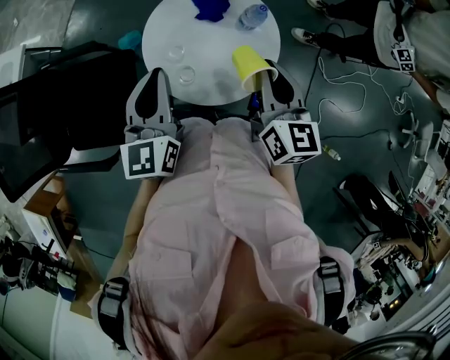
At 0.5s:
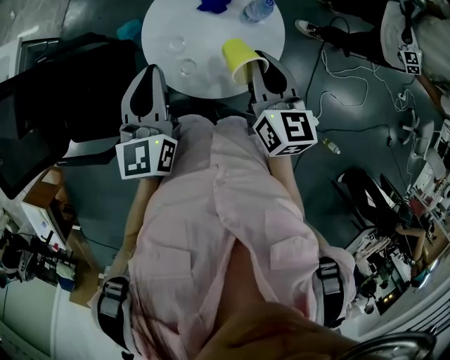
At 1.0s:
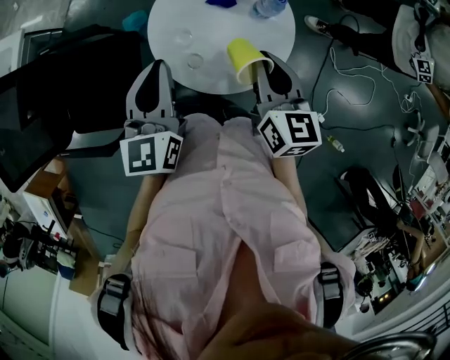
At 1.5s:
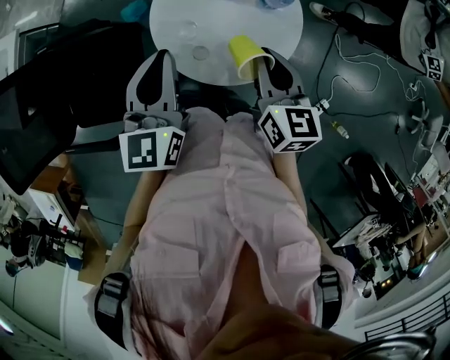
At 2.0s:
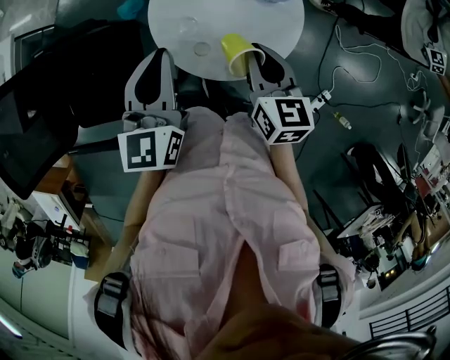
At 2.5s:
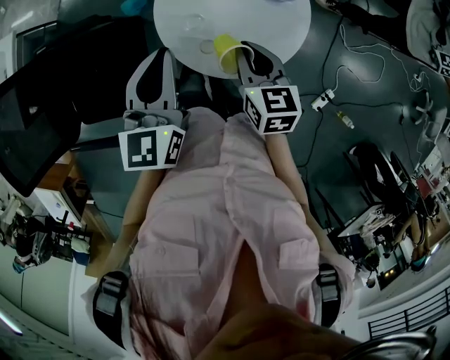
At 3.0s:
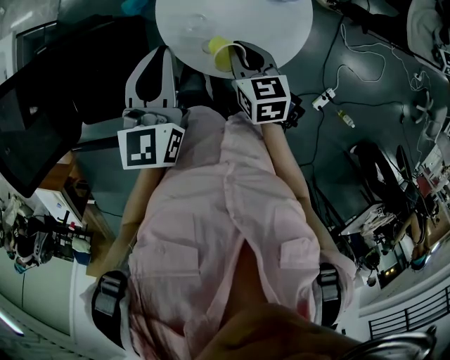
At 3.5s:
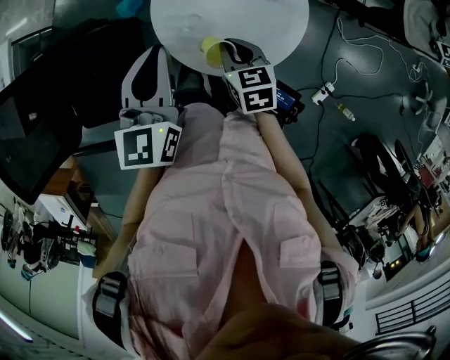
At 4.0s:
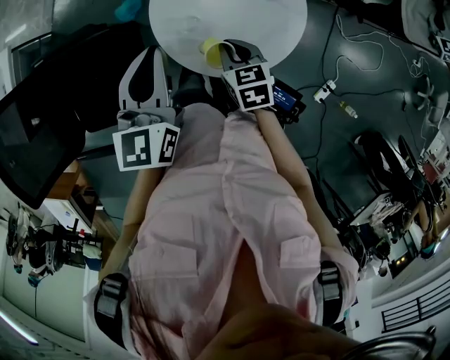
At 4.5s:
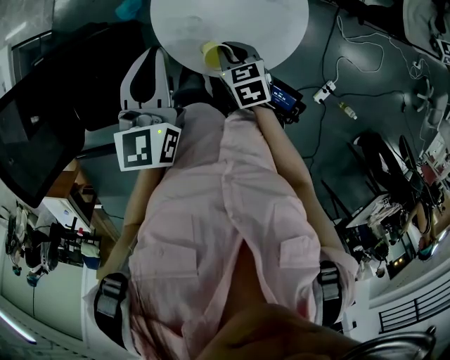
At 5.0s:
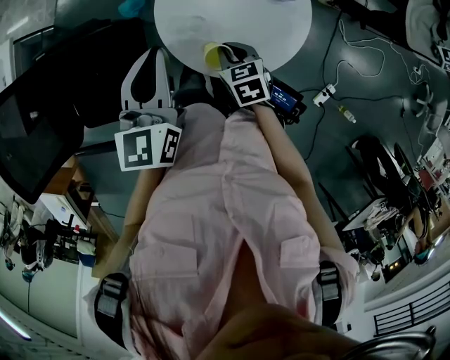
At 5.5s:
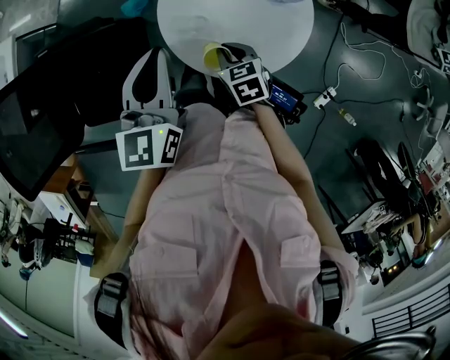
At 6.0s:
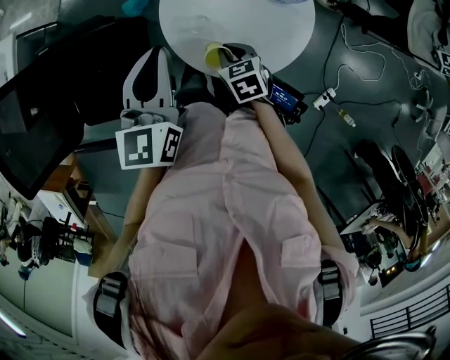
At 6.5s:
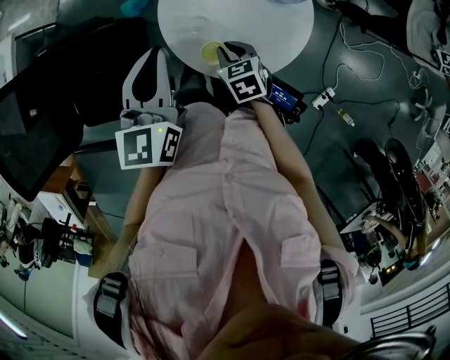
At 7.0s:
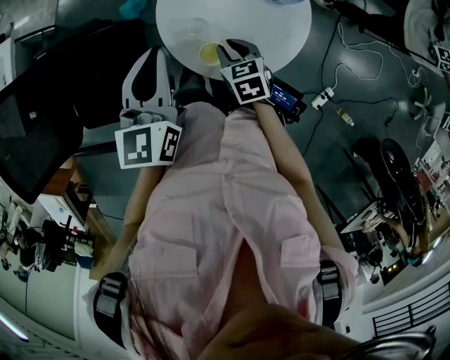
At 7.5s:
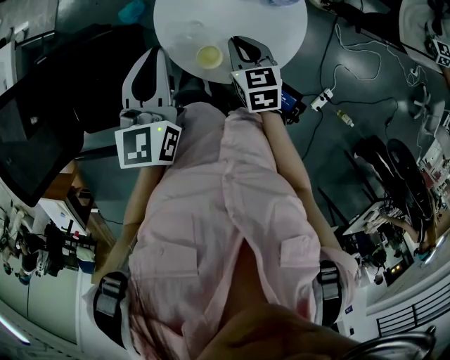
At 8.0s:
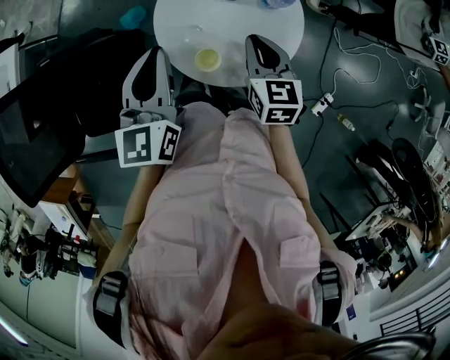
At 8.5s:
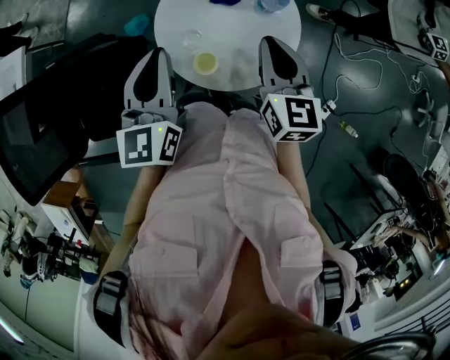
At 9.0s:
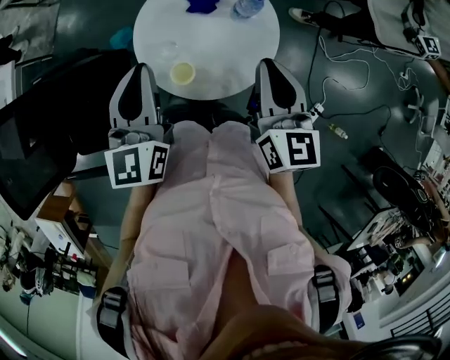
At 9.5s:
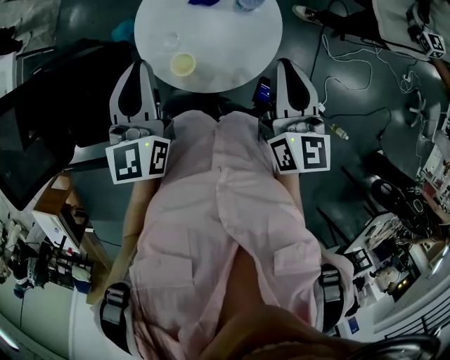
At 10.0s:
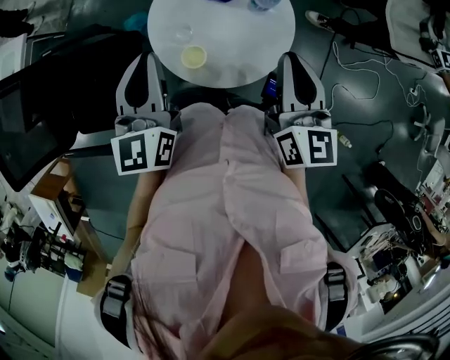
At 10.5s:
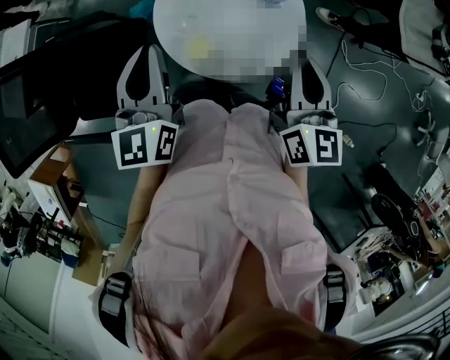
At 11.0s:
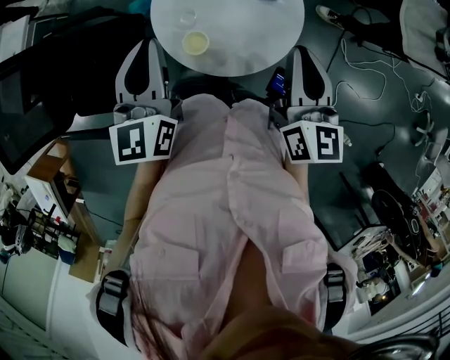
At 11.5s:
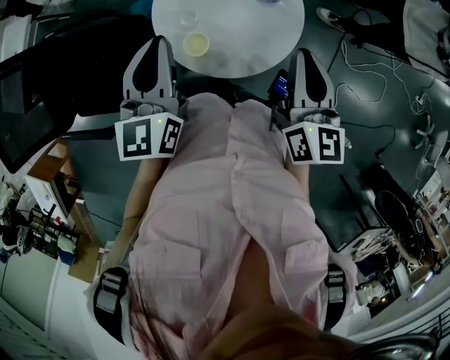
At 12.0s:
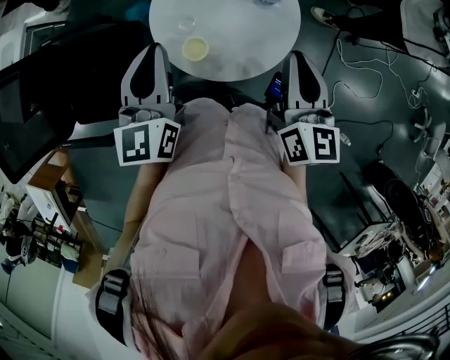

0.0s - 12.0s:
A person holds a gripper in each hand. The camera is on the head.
0.0s - 2.0s: The right gripper is displaced downward and to the left by approximately 10 cm.
2.0s - 4.0s: The right gripper travels downward and to the left by approximately 15 cm, and swivels about 20 degrees.
4.0s - 6.0s: The right gripper ends up roughly 5 cm from where it was.
6.0s - 8.0s: The right gripper travels upward and to the right by approximately 15 cm, and turns by some 30 degrees.
8.0s - 10.0s: The left gripper shifts by roughly 5 cm. Meanwhile the right gripper goes roughly 15 cm upward, to the right and backward, and swivels some 20 degrees.
10.0s - 12.0s: The grippers move only a little.

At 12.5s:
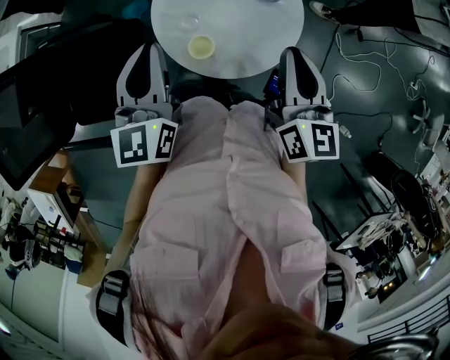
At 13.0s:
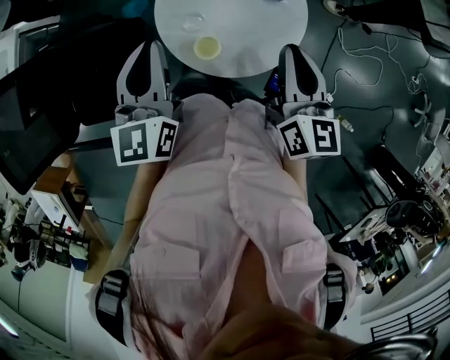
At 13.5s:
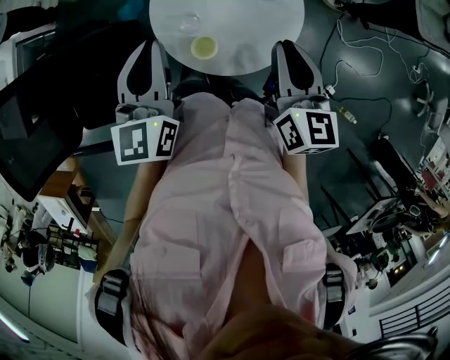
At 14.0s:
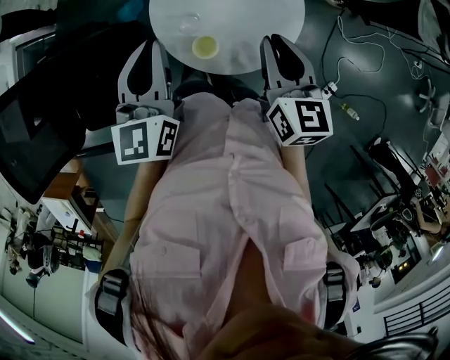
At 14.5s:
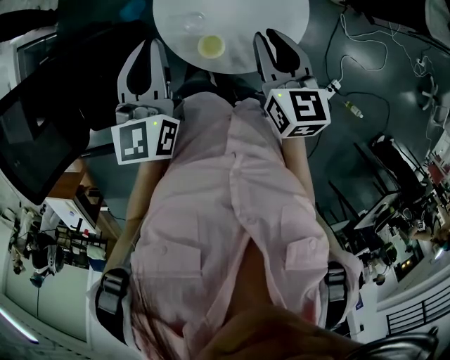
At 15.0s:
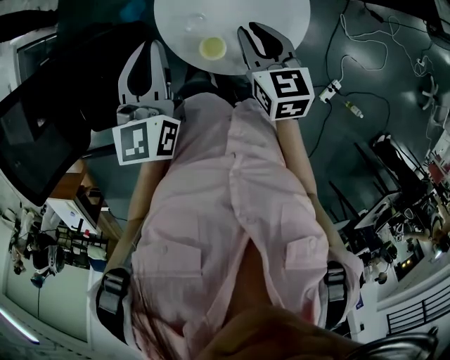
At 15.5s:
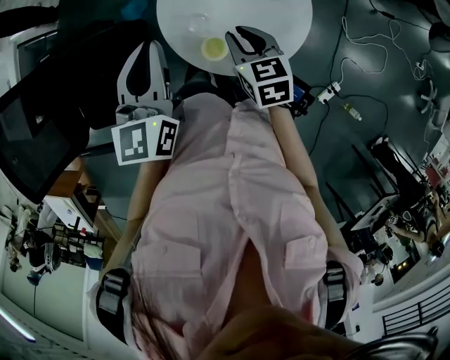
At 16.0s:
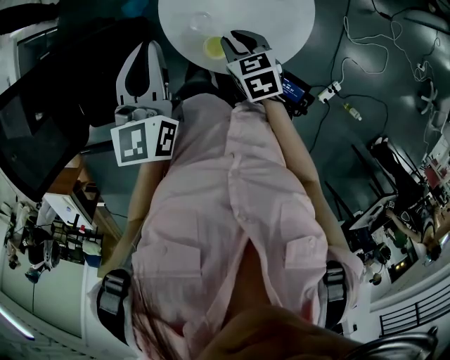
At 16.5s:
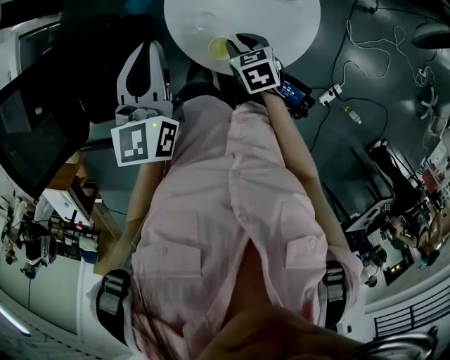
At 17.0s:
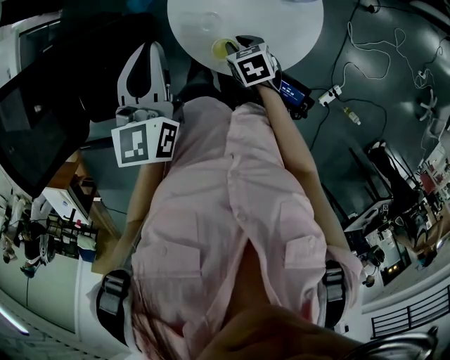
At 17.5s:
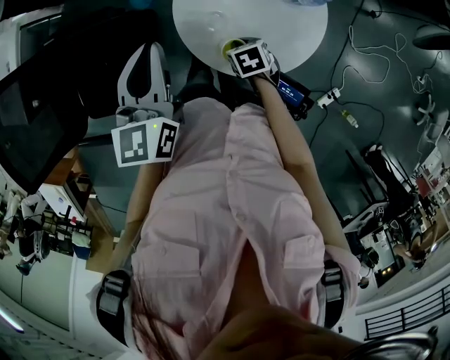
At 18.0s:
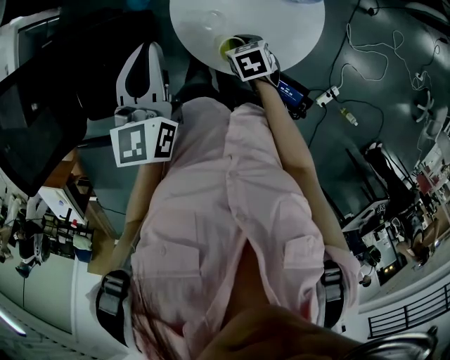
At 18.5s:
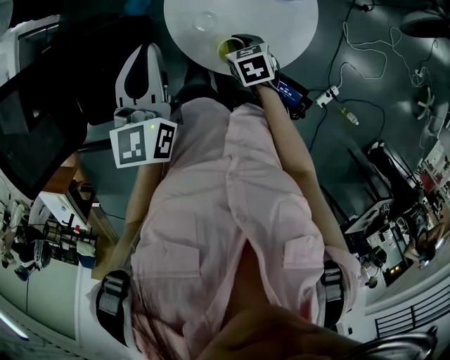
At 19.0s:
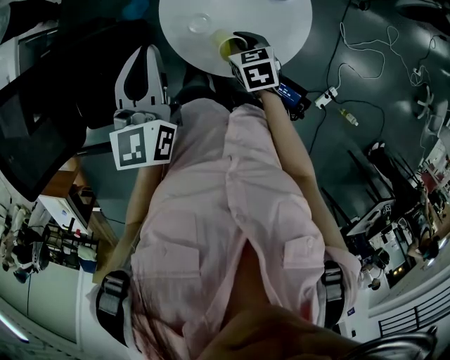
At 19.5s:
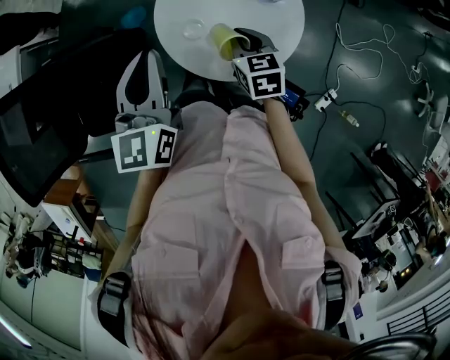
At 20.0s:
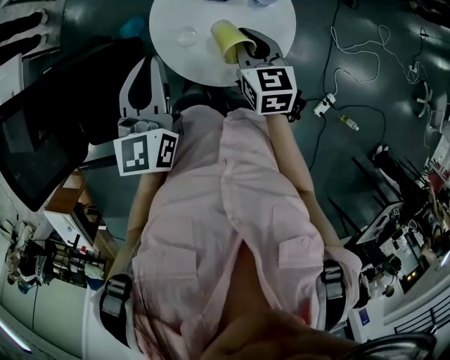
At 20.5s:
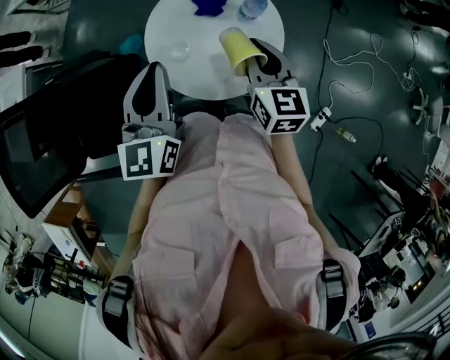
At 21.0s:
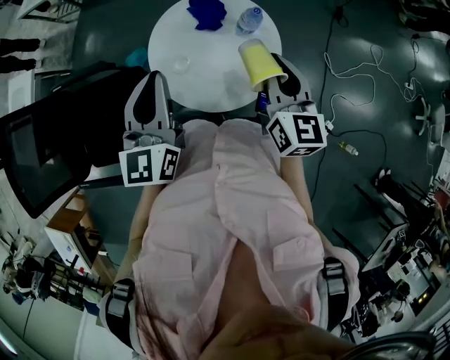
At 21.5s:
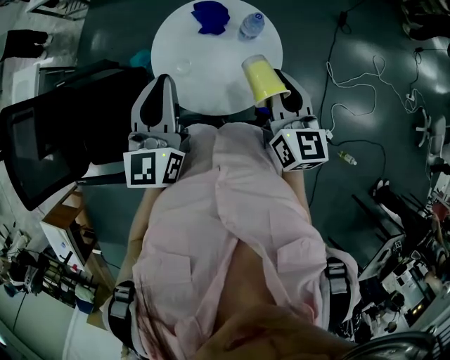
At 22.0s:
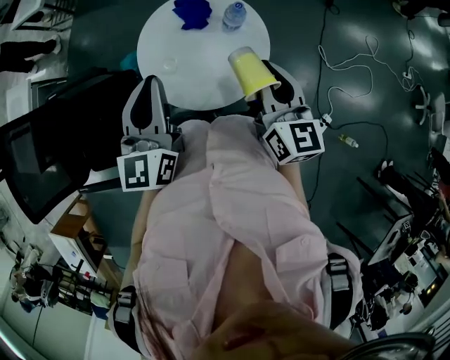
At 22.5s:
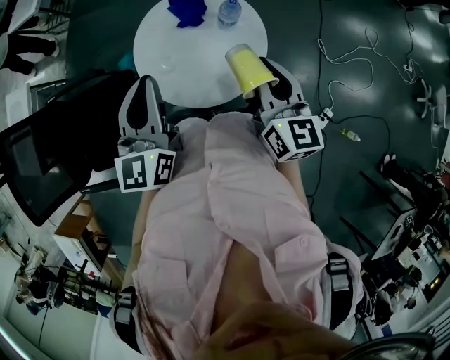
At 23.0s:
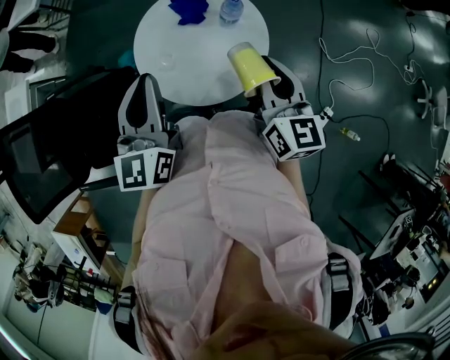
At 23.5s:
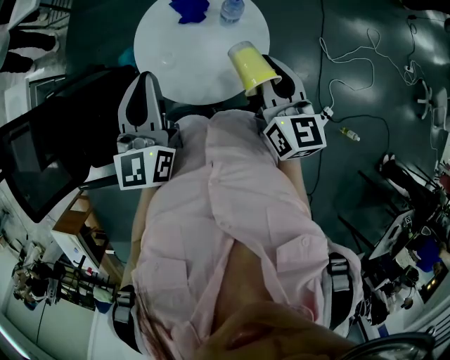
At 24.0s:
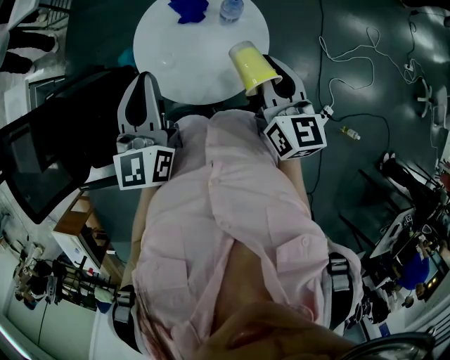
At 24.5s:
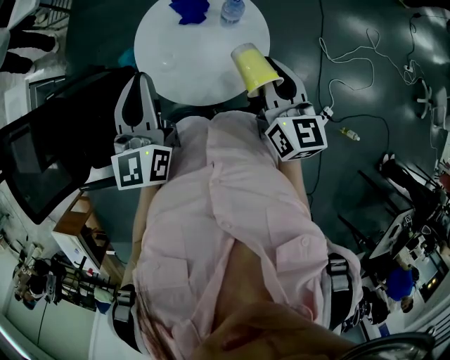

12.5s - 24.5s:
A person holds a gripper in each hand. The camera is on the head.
12.5s - 14.5s: The right gripper is displaced to the left and downward by some 10 cm.
14.5s - 16.5s: The right gripper goes about 20 cm downward and to the left, and rotates some 40 degrees.
18.5s - 20.5s: The right gripper goes roughly 25 cm upward and to the right, and points its fingers about 40 degrees further upward. The left gripper moves to the right, about 10 cm.
20.5s - 22.5s: The right gripper is displaced to the right and upward by some 10 cm.
22.5s - 24.5s: Neither gripper changes place.

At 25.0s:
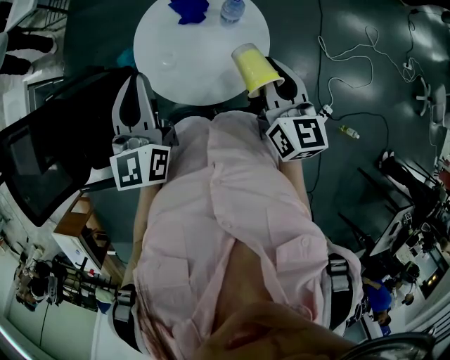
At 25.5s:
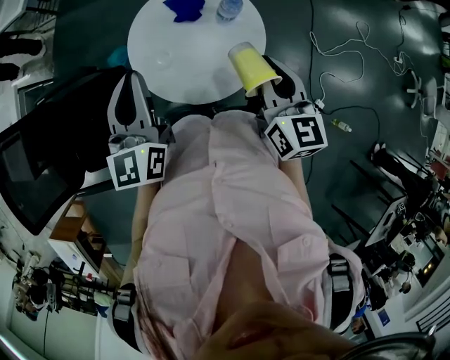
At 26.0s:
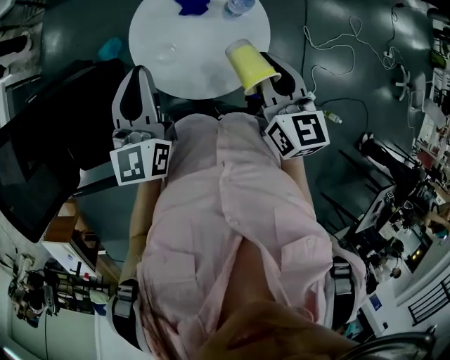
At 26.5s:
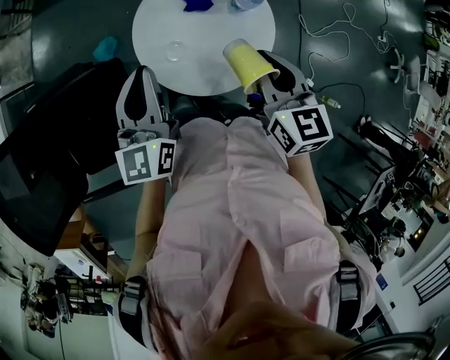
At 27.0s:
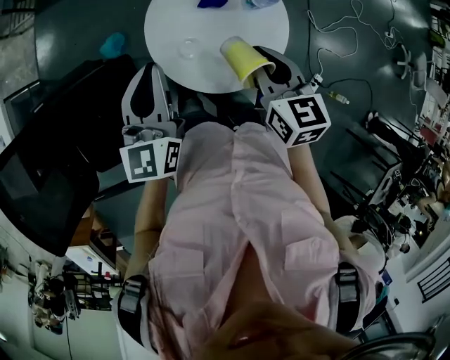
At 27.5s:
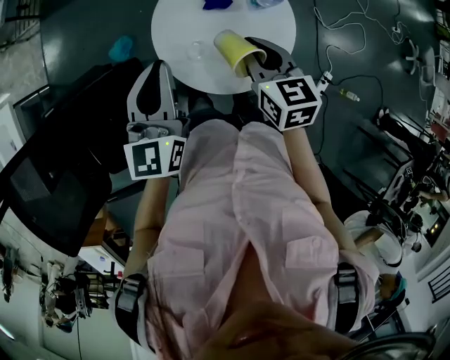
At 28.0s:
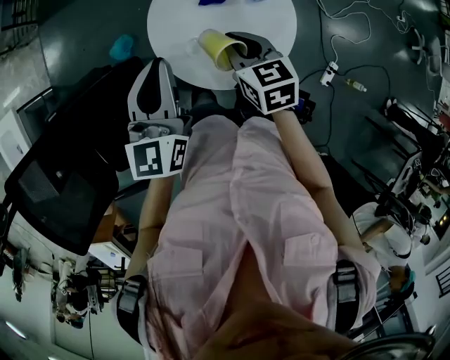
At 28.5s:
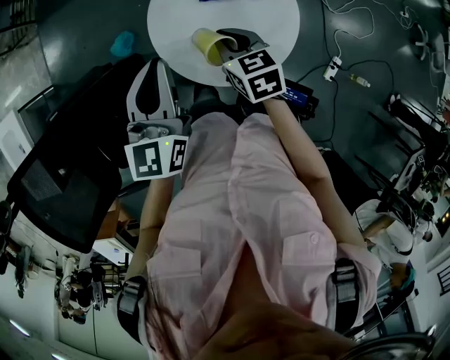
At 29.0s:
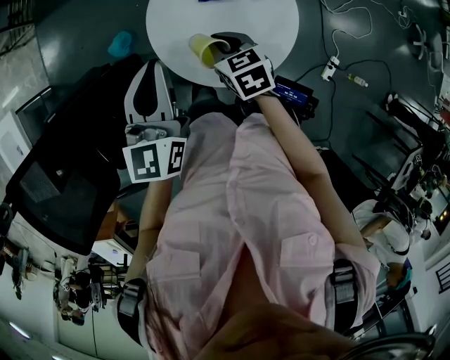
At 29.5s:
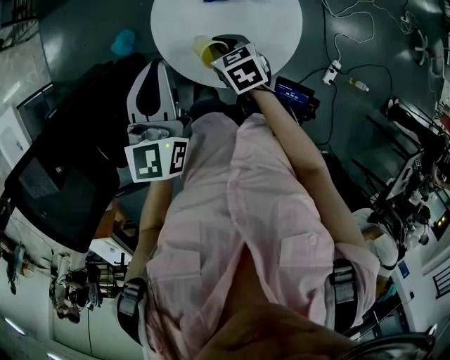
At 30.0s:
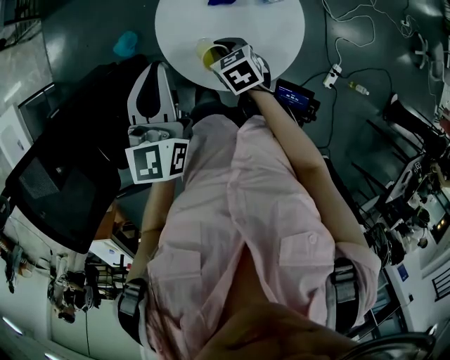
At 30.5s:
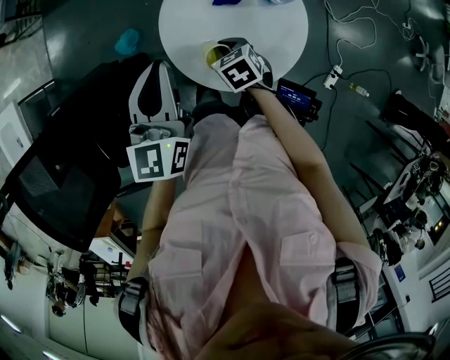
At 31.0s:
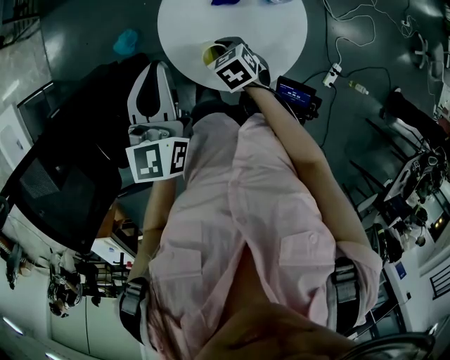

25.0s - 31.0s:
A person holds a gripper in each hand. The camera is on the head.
25.0s - 27.0s: The right gripper is displaced to the left by some 15 cm, and changes its angle by some 20 degrees. Meanwhile the left gripper is displaced to the left, downward and forward by roughly 10 cm.
27.0s - 29.0s: The right gripper is displaced downward and to the left by approximately 15 cm.
29.0s - 31.0s: The right gripper moves downward, approximately 5 cm.
